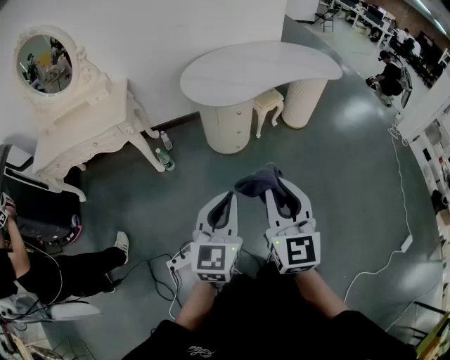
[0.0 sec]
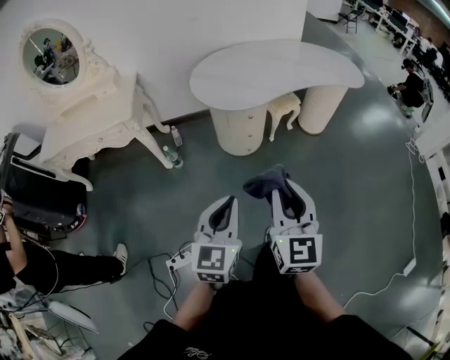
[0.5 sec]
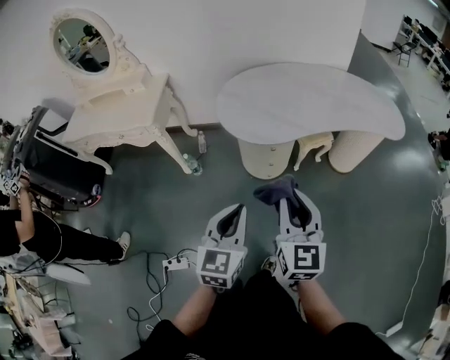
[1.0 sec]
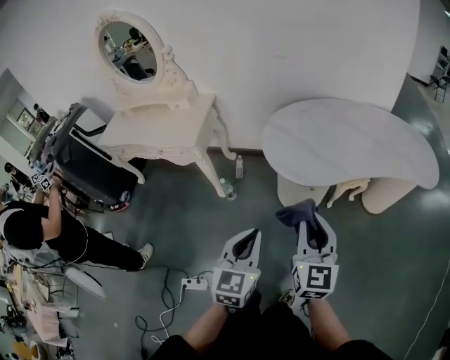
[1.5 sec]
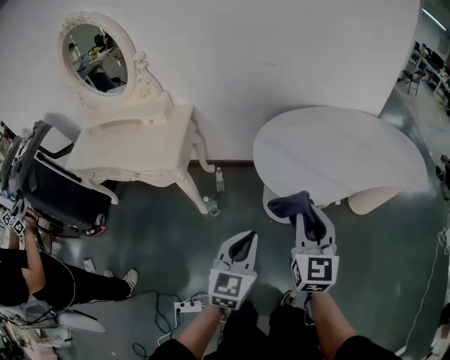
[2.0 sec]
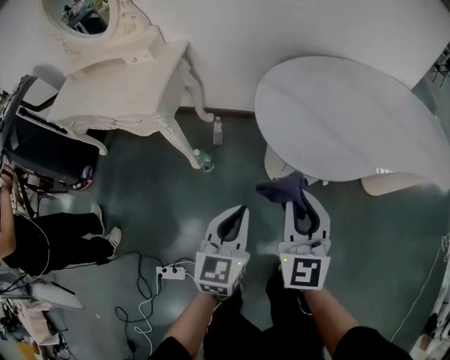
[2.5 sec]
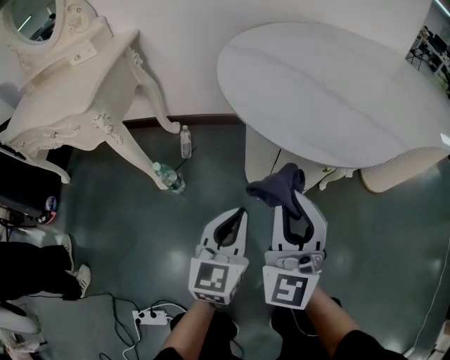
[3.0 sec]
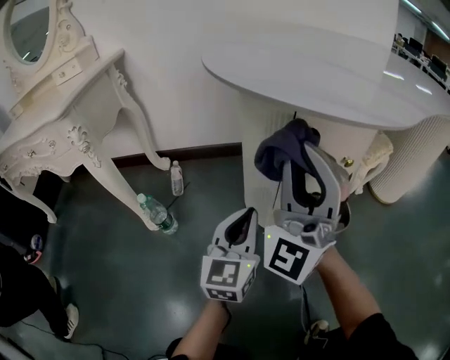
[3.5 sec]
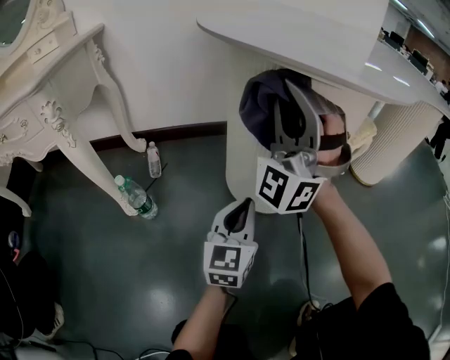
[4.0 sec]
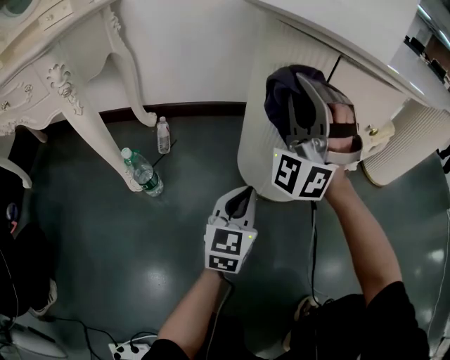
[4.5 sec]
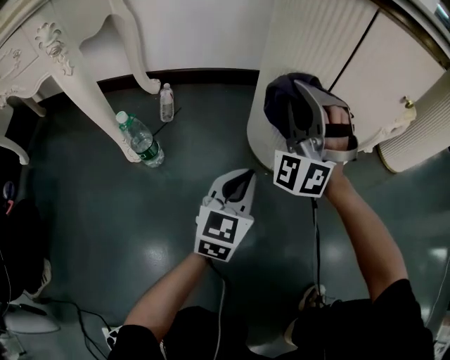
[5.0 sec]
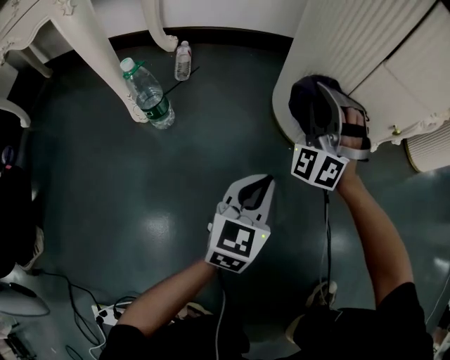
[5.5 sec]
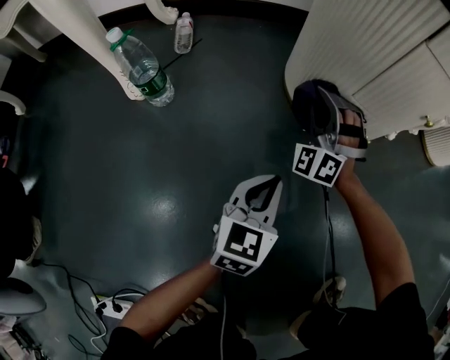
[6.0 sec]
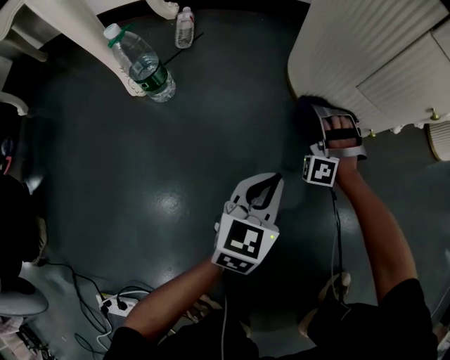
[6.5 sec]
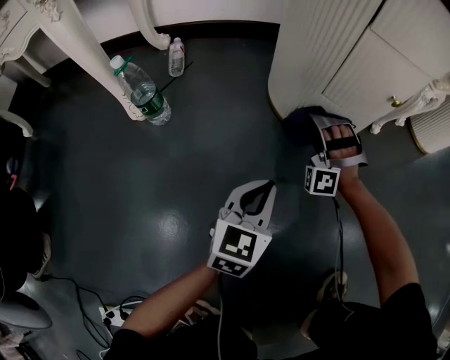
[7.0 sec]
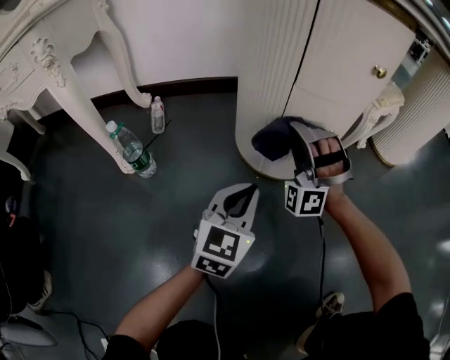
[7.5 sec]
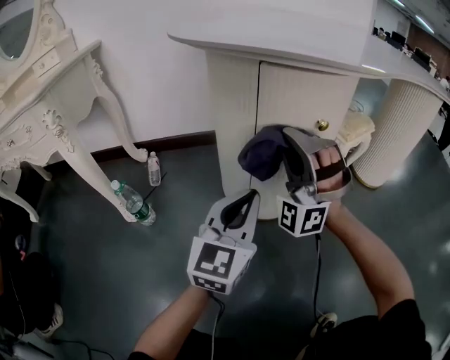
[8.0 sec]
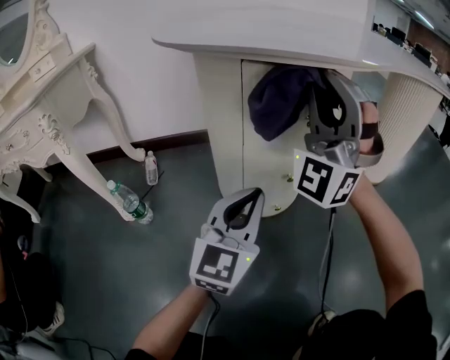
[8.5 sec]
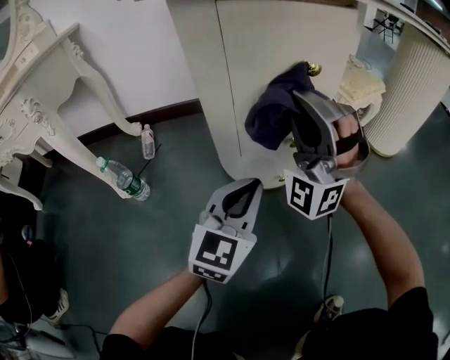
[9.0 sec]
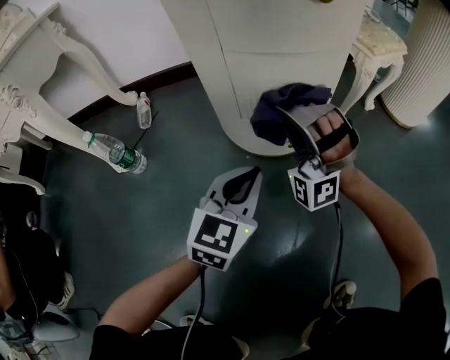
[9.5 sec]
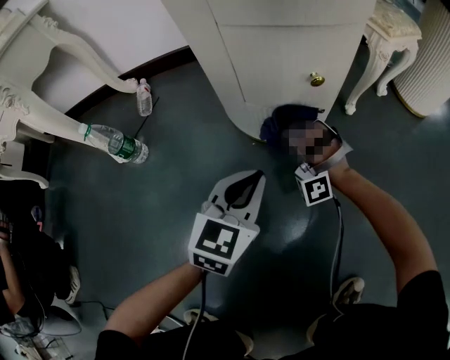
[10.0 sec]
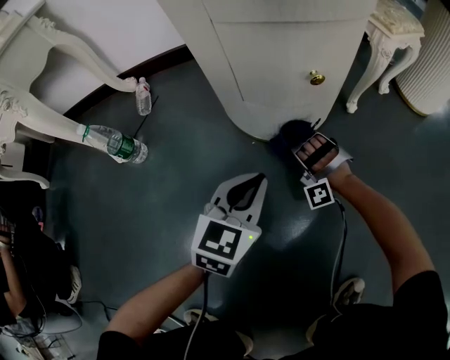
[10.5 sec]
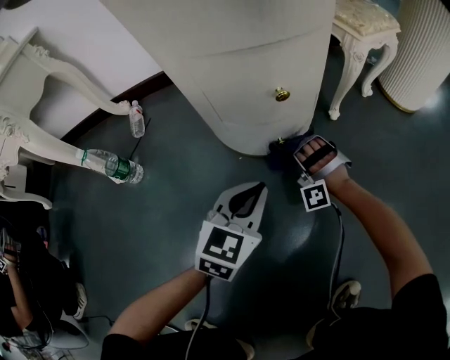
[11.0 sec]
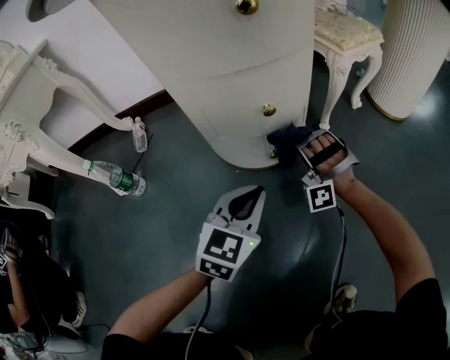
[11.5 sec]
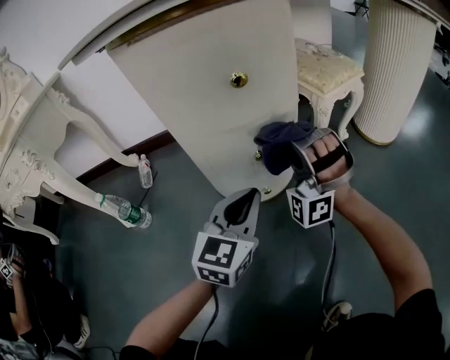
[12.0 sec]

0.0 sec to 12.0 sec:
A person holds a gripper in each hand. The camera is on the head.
0.0 sec to 2.0 sec: The two grippers go some 40 cm forward.
2.0 sec to 4.0 sec: The left gripper travels downward by approximately 60 cm. The right gripper goes roughly 40 cm downward and forward, and twists roughly 80 degrees counterclockwise, seen from behind.
4.0 sec to 6.0 sec: The right gripper travels downward by about 50 cm, and angles its fingers downward, by some 40 degrees. Meanwhile the left gripper travels downward by roughly 25 cm.
6.0 sec to 8.0 sec: Both grippers move upward, roughly 35 cm. The right gripper changes its angle by roughly 30 degrees, while the left gripper changes its angle by some 30 degrees.
8.0 sec to 10.0 sec: The left gripper is displaced downward by some 25 cm, and turns by about 20 degrees, while the right gripper shifts approximately 40 cm downward, and rotates about 30 degrees.
10.0 sec to 12.0 sec: The right gripper shifts roughly 30 cm upward and to the right, and changes its angle by about 30 degrees, while the left gripper shifts roughly 15 cm upward and to the right.

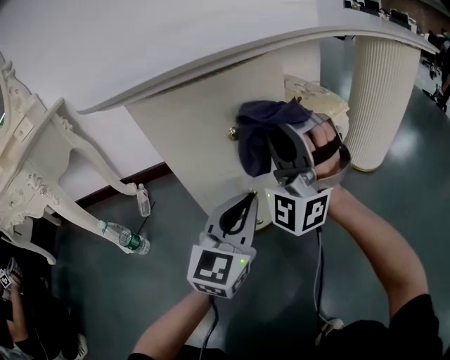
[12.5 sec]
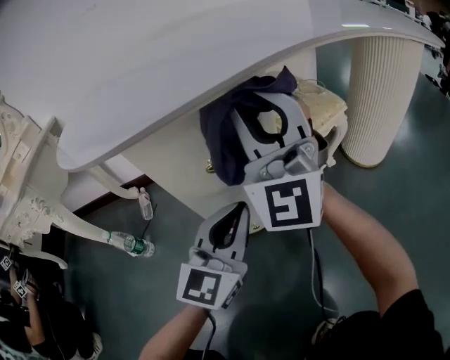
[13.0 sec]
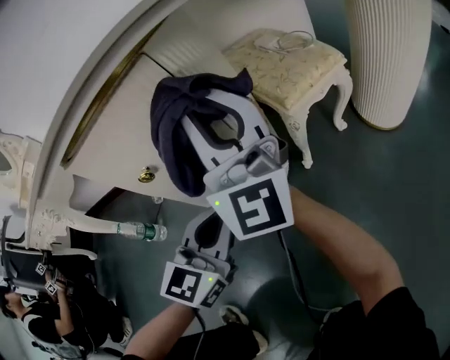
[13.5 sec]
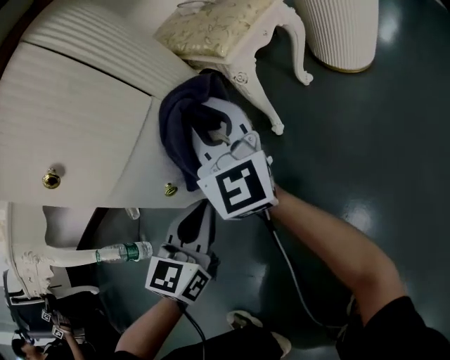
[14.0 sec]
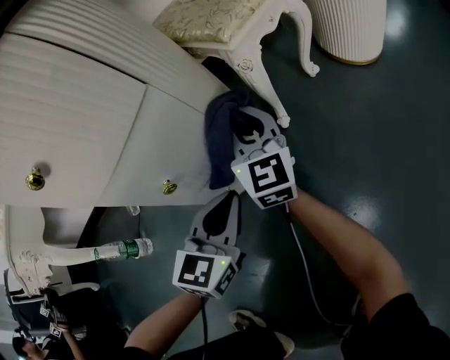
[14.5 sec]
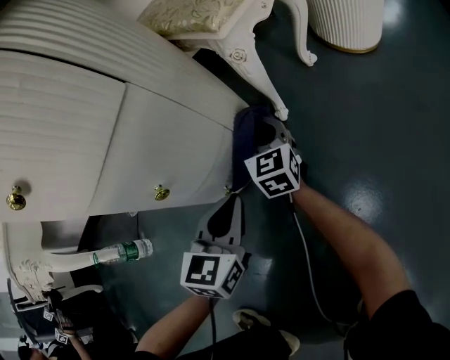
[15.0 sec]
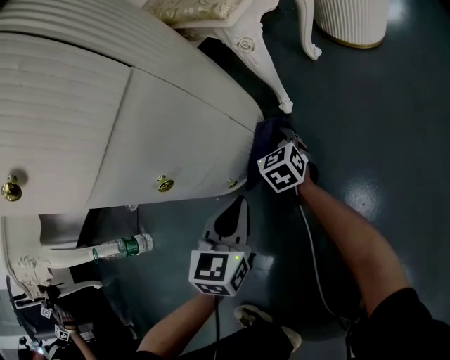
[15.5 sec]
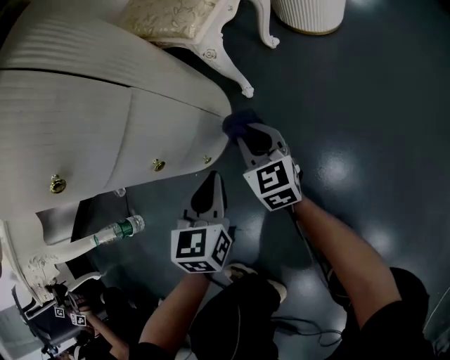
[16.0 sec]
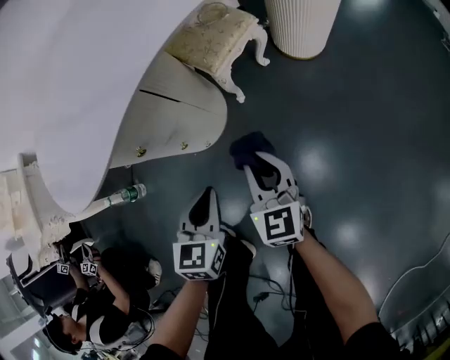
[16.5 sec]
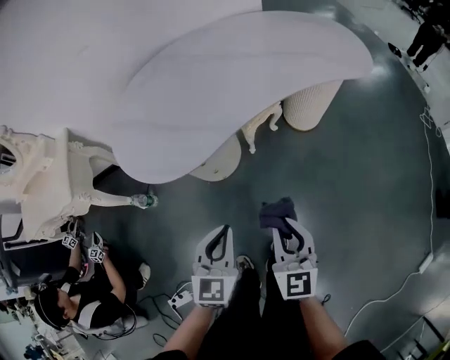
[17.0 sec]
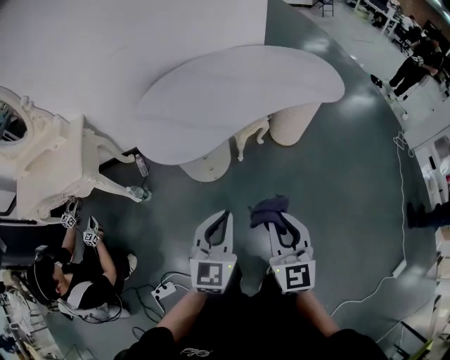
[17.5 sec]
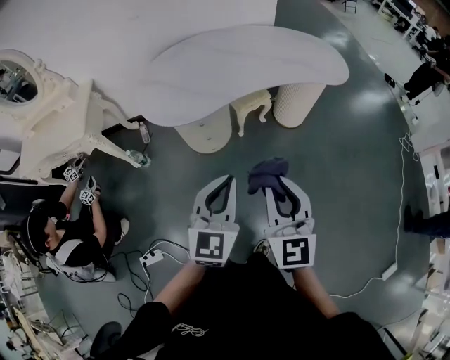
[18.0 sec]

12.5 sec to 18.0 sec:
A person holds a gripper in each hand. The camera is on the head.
12.5 sec to 14.5 sec: The left gripper shifts roughly 20 cm downward, and turns by about 20 degrees. The right gripper goes about 35 cm downward and forward, and twists about 80 degrees clockwise, seen from behind.
14.5 sec to 16.0 sec: The right gripper heads backward and to the right, covering about 10 cm, travels downward and back again, roughly 25 cm each way, and rotates roughly 30 degrees; the left gripper travels downward and back again, some 5 cm each way.
16.0 sec to 18.0 sec: The two grippers go about 90 cm upward and backward. The right gripper rotates approximately 20 degrees. Meanwhile the left gripper swivels some 30 degrees.

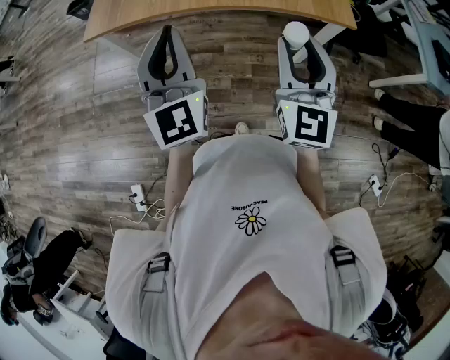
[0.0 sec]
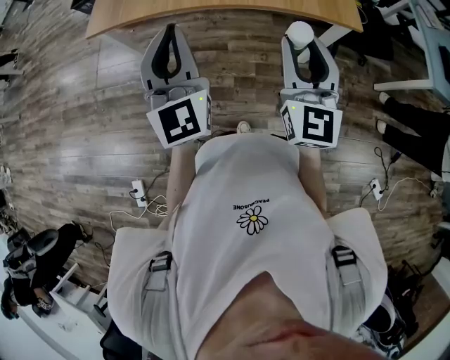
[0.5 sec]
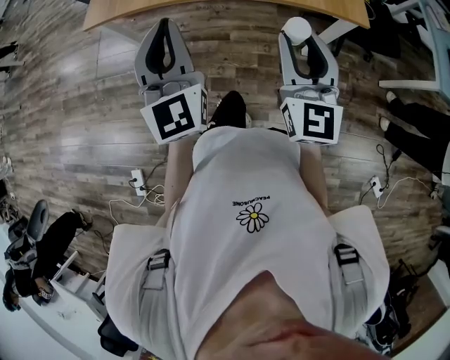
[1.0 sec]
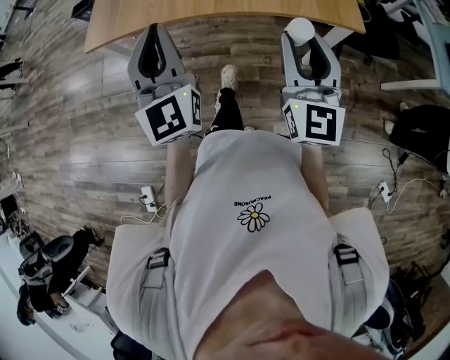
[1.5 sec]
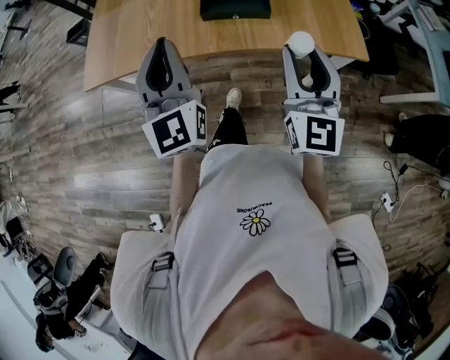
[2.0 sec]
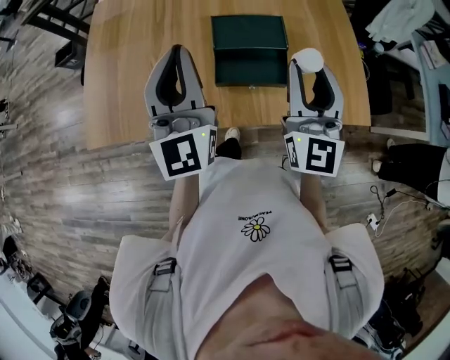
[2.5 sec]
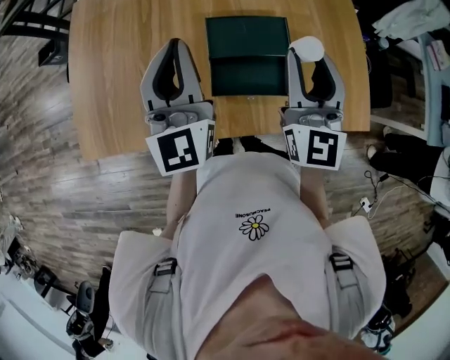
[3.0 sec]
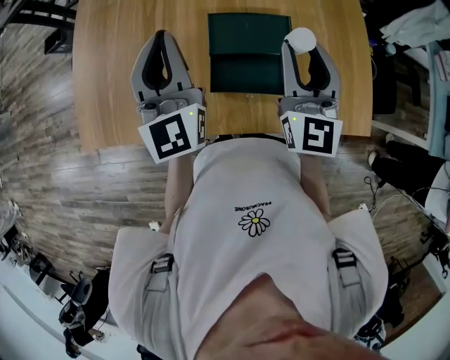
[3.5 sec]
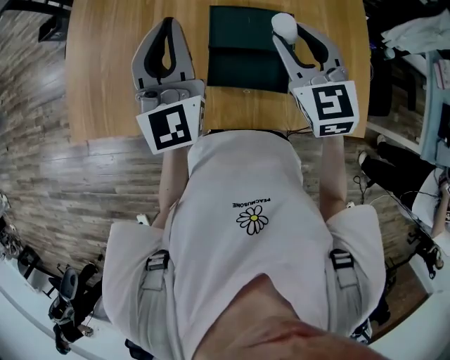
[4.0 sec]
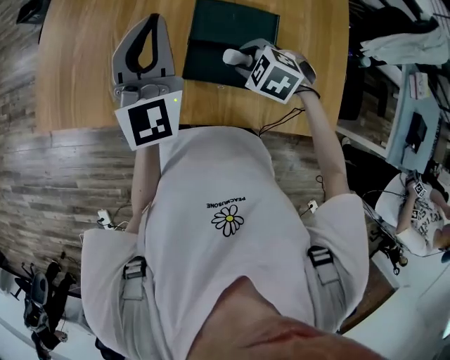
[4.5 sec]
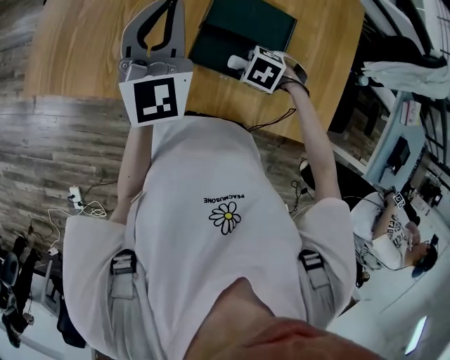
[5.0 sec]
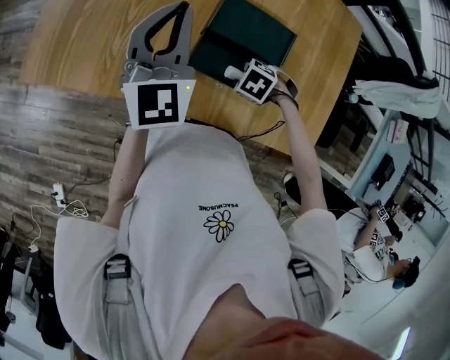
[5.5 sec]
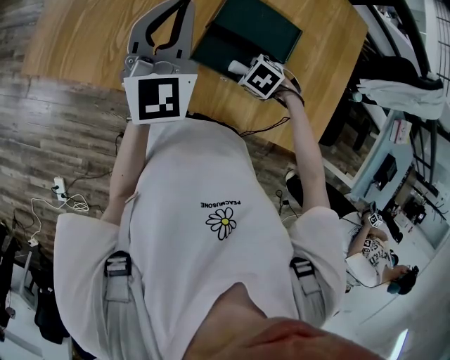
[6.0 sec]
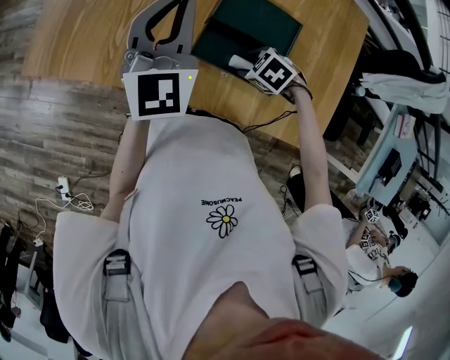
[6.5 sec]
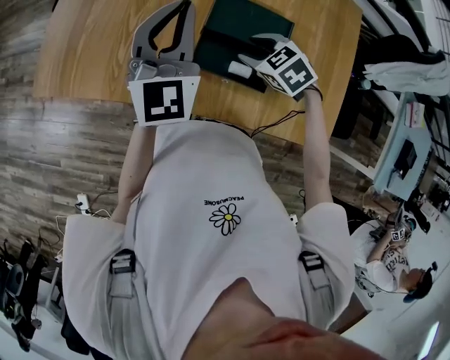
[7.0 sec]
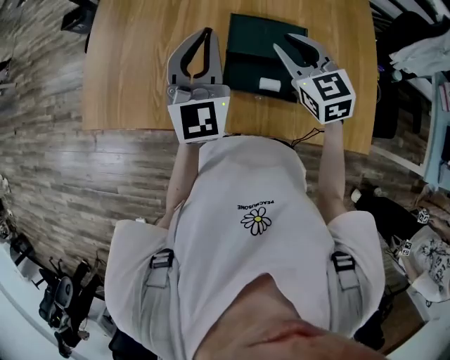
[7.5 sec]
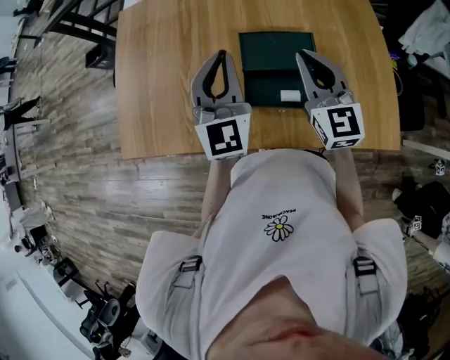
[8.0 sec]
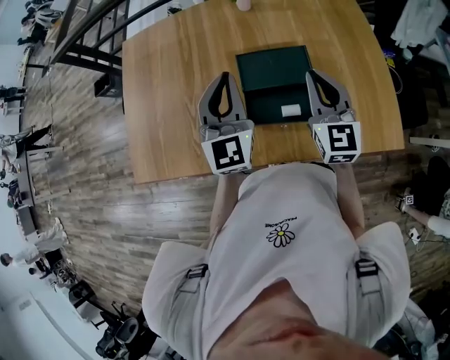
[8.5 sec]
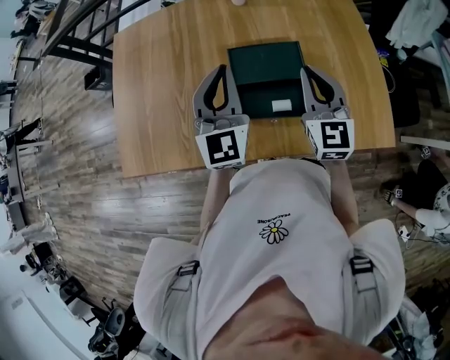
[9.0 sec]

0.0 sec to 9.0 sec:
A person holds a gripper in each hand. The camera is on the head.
0.0 sec to 2.0 sec: Both grippers move forward, about 20 cm.
2.0 sec to 4.5 sec: The right gripper ends up approximately 40 cm from where it was, and points its fingers some 80 degrees further downward, while the left gripper ends up approximately 35 cm from where it was.
4.5 sec to 7.0 sec: The right gripper travels downward and back again, some 10 cm each way.
7.0 sec to 9.0 sec: The left gripper changes place by approximately 10 cm, while the right gripper moves upward, some 15 cm, tilts its fingers some 60 degrees upward, and closes.
